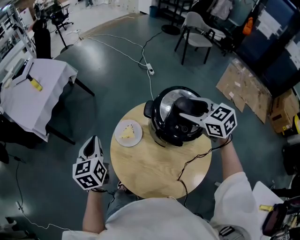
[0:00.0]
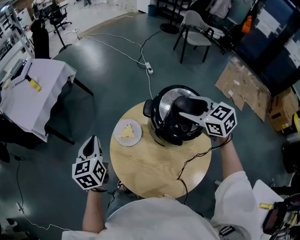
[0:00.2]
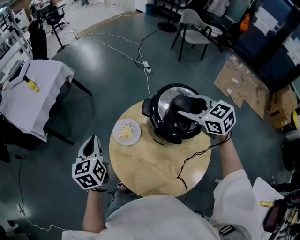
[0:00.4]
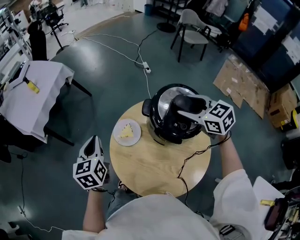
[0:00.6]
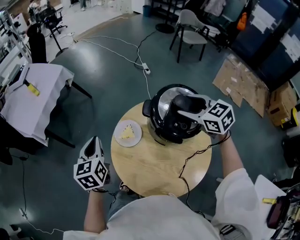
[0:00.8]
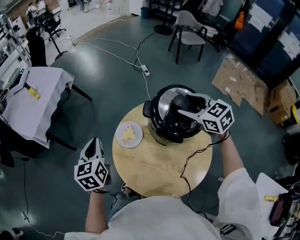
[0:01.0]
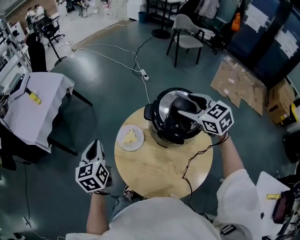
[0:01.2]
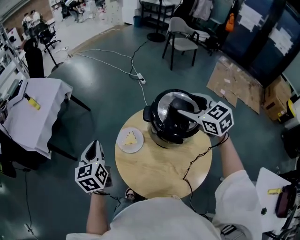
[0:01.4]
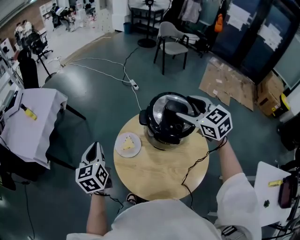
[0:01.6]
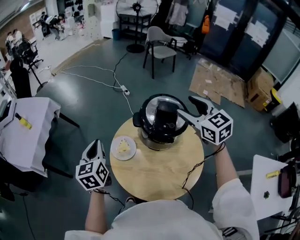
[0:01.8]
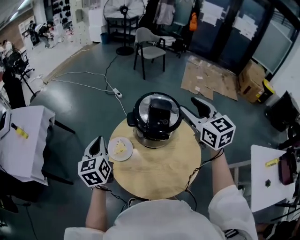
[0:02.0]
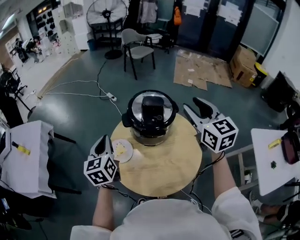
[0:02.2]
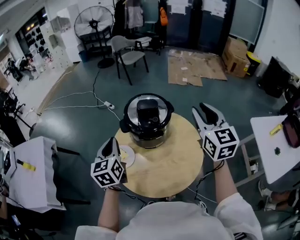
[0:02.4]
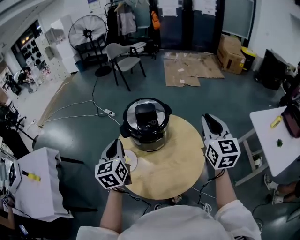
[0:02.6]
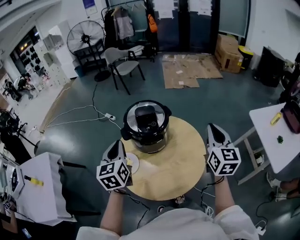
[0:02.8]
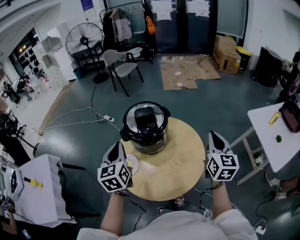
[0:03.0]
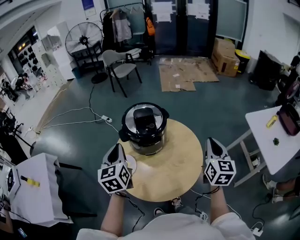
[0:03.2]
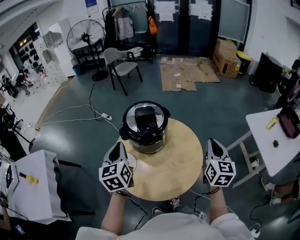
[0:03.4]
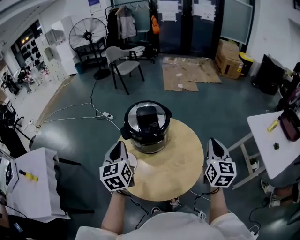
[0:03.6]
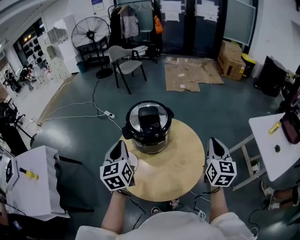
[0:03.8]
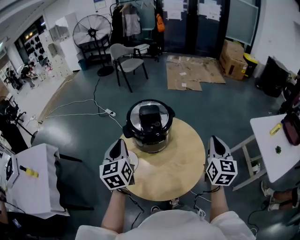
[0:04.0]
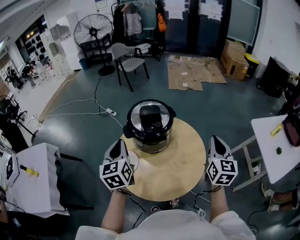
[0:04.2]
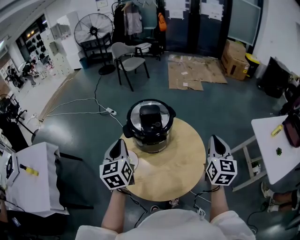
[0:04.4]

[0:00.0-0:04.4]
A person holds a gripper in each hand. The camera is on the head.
0:00.0 to 0:01.4: The grippers move only a little.
0:01.4 to 0:03.0: The left gripper shifts by about 20 cm, and rotates roughly 40 degrees. Meanwhile the right gripper reaches some 10 cm upward, then returns, rotates roughly 80 degrees, and closes.
0:03.0 to 0:04.4: The grippers make only small movements.

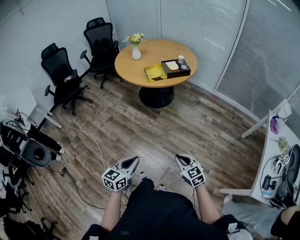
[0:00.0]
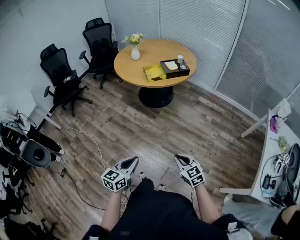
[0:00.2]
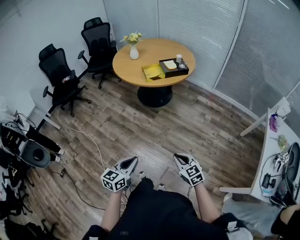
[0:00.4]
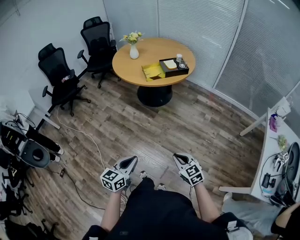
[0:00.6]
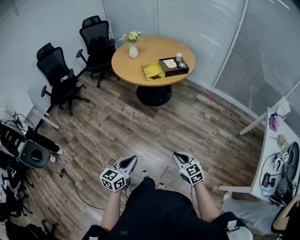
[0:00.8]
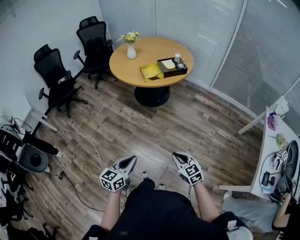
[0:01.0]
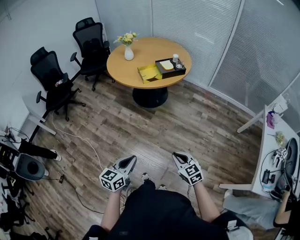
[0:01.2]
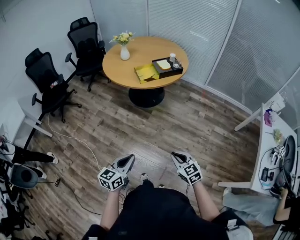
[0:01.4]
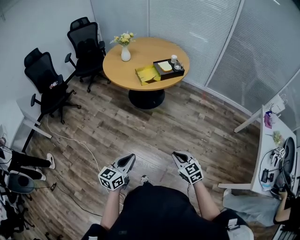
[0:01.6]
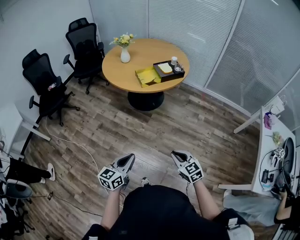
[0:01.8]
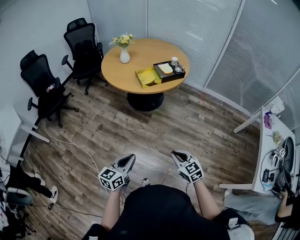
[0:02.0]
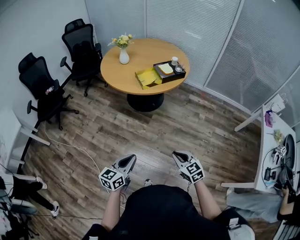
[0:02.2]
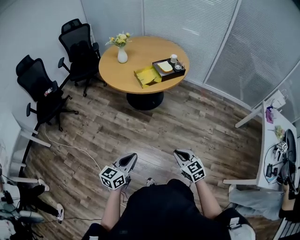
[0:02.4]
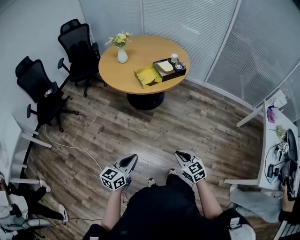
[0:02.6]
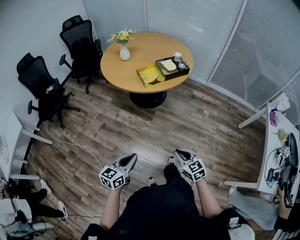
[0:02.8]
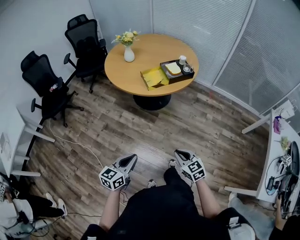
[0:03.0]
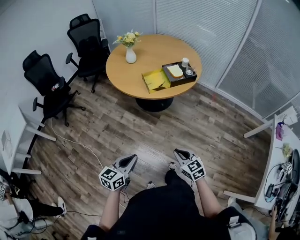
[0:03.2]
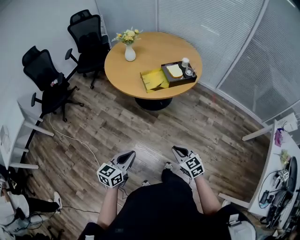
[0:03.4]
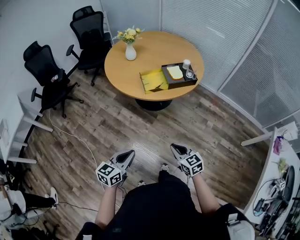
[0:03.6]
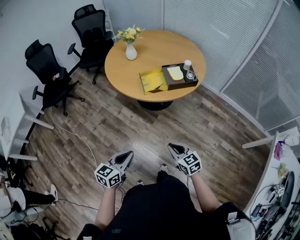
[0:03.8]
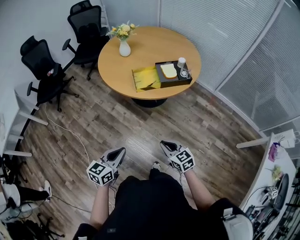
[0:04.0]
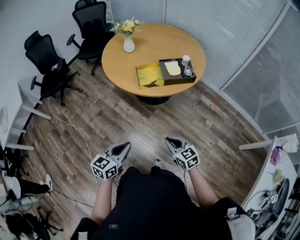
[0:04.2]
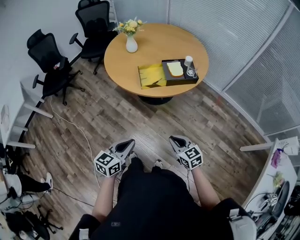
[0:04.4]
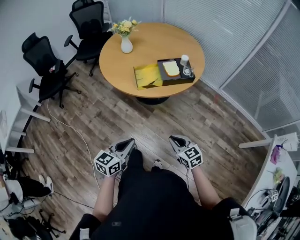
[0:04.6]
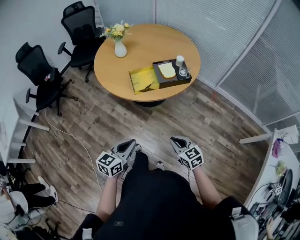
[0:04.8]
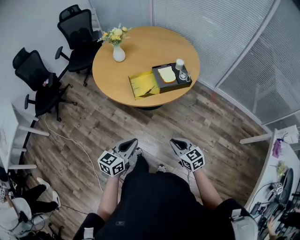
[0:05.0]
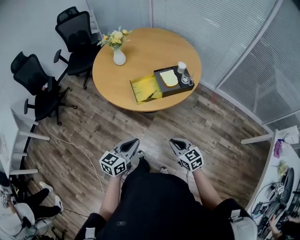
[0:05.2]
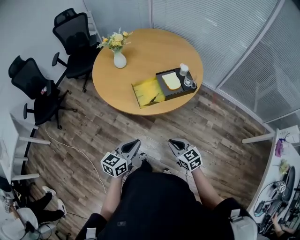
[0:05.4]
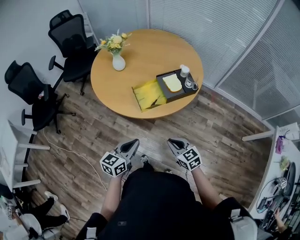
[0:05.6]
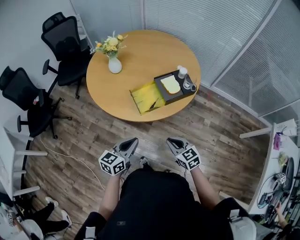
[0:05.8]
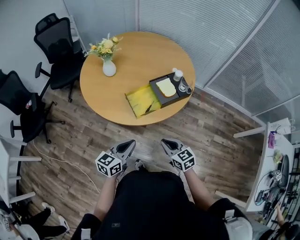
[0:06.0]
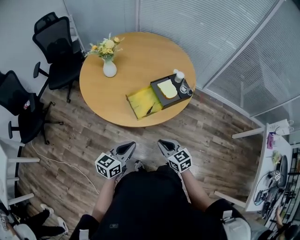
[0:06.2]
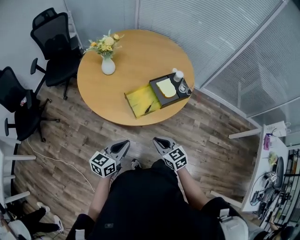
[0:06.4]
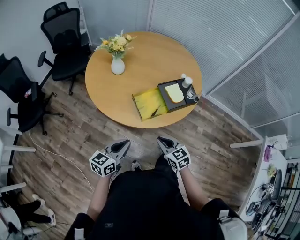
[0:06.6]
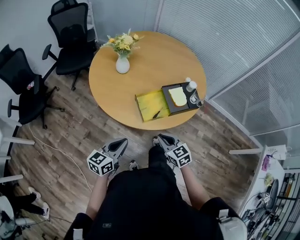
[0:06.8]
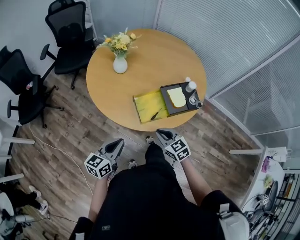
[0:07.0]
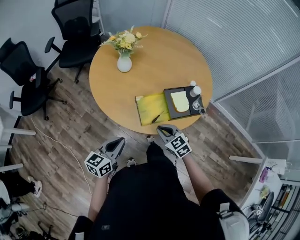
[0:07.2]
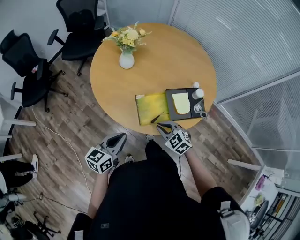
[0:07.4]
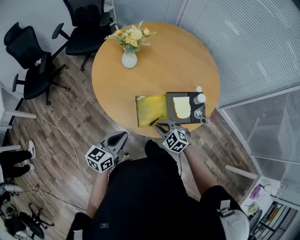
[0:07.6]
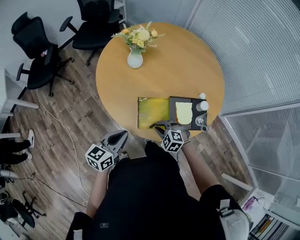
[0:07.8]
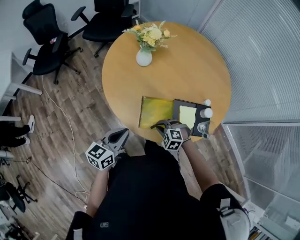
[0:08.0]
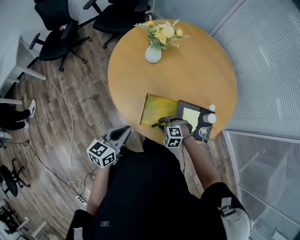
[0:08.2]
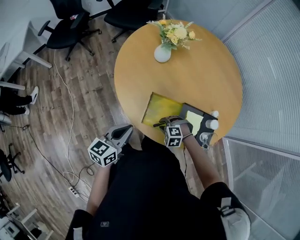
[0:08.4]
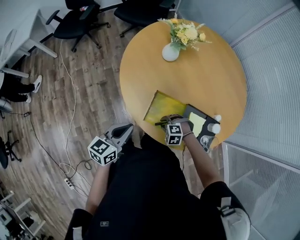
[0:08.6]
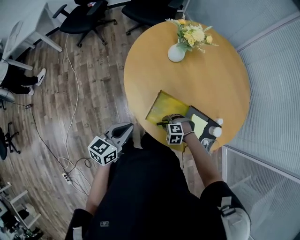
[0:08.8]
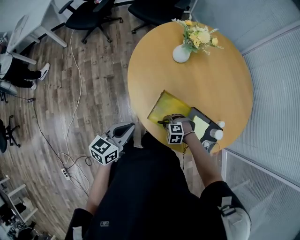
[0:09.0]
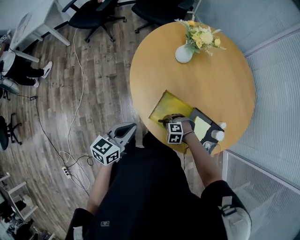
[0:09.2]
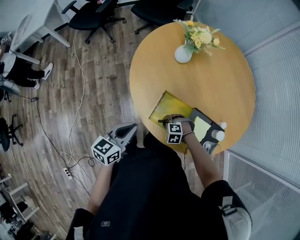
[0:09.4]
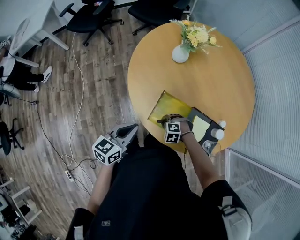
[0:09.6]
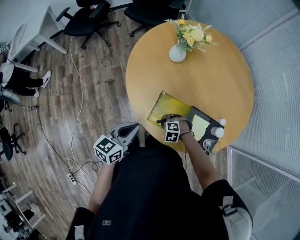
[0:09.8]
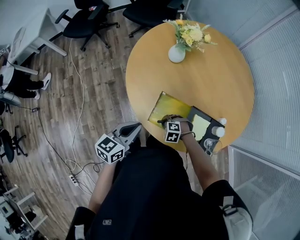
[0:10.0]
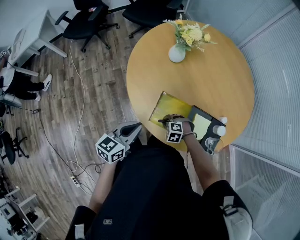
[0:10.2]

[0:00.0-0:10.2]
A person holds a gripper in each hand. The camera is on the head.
0:00.0 to 0:01.4: The right gripper changes place by some 5 cm, while the left gripper is displaced forward by some 5 cm.
0:01.4 to 0:03.0: The right gripper heads forward, covering about 15 cm, while the left gripper heads forward and to the left, covering roughly 15 cm.
0:03.0 to 0:04.4: The left gripper is displaced to the right and forward by about 20 cm. Meanwhile the right gripper goes some 20 cm forward and to the right.
0:04.4 to 0:05.8: The left gripper is displaced forward by roughly 20 cm. The right gripper shifts some 20 cm forward and to the left.
0:05.8 to 0:07.2: The left gripper travels forward and to the left by approximately 10 cm; the right gripper heads forward, covering about 20 cm, and changes its angle by approximately 20 degrees.
0:07.2 to 0:08.8: The left gripper moves roughly 5 cm, and rotates some 30 degrees, while the right gripper goes roughly 20 cm downward, and rotates around the line of its fingers by about 70 degrees, counterclockwise from behind.
0:08.8 to 0:10.2: The grippers make only small movements.

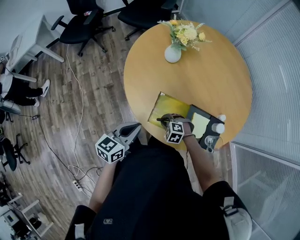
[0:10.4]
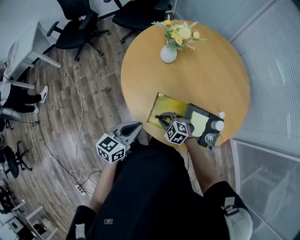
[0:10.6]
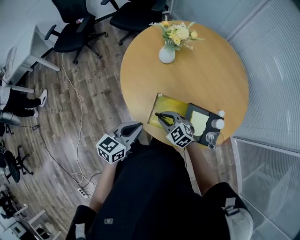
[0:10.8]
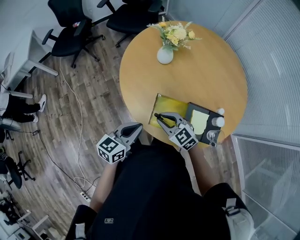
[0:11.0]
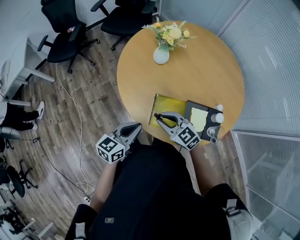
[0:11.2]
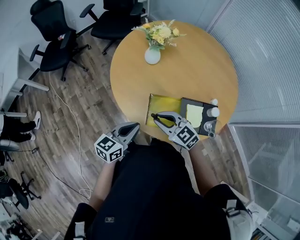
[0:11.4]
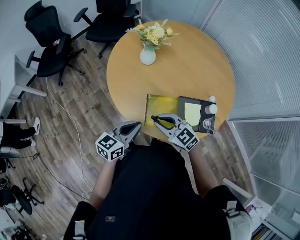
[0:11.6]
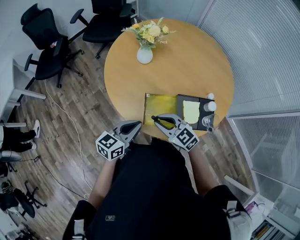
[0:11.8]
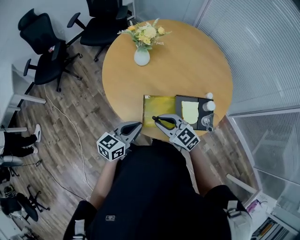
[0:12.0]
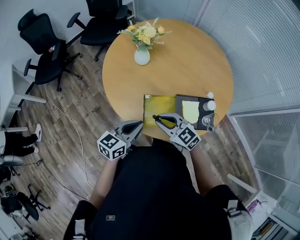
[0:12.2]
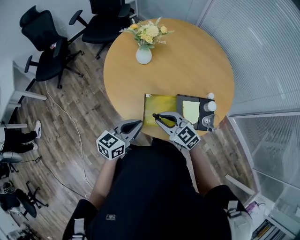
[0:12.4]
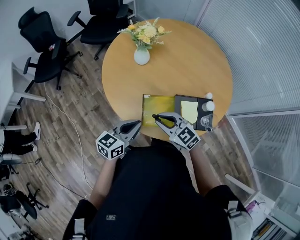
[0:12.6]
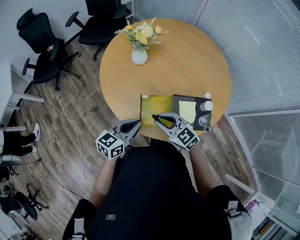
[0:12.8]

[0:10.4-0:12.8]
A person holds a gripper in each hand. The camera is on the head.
0:10.4 to 0:11.6: The right gripper moves upward, about 20 cm, and points its fingers roughly 40 degrees further upward.
0:11.6 to 0:12.8: There are only small adjustments of the grippers.

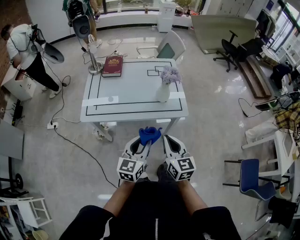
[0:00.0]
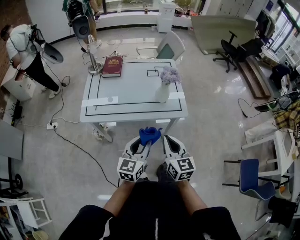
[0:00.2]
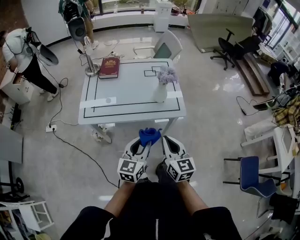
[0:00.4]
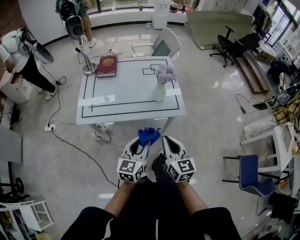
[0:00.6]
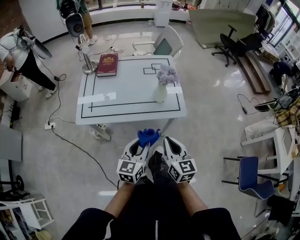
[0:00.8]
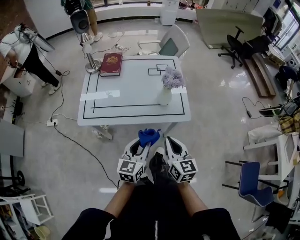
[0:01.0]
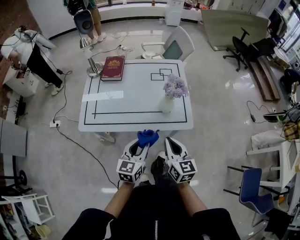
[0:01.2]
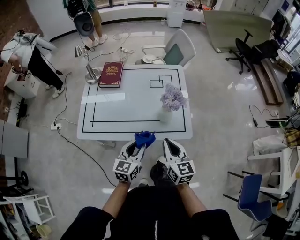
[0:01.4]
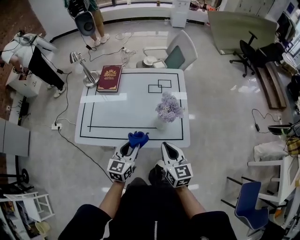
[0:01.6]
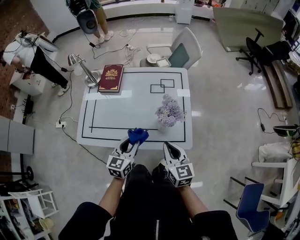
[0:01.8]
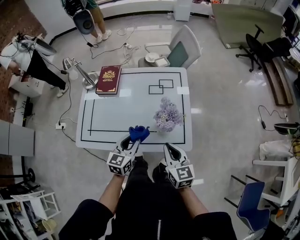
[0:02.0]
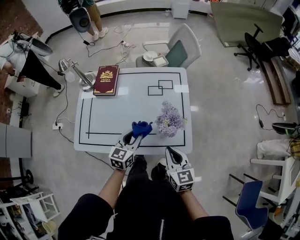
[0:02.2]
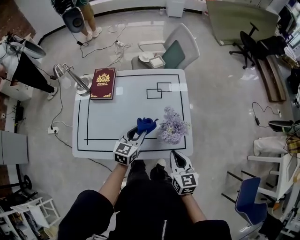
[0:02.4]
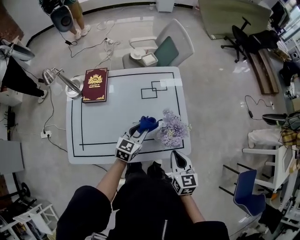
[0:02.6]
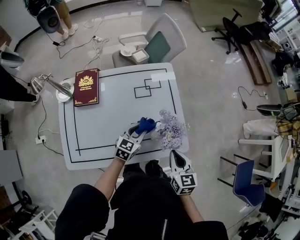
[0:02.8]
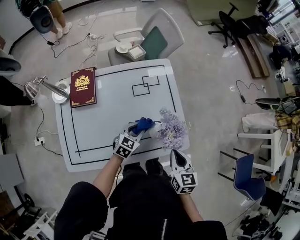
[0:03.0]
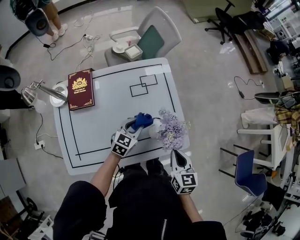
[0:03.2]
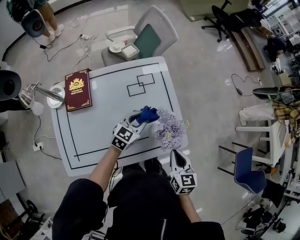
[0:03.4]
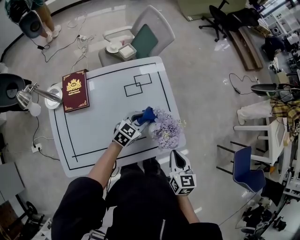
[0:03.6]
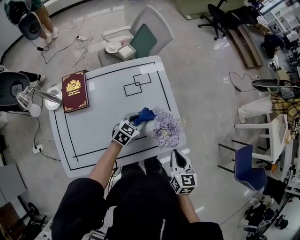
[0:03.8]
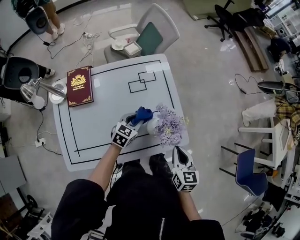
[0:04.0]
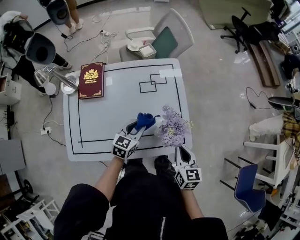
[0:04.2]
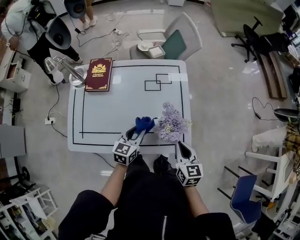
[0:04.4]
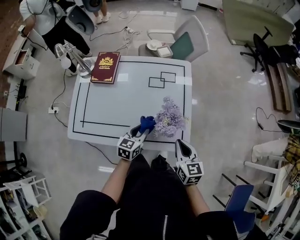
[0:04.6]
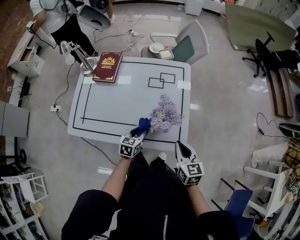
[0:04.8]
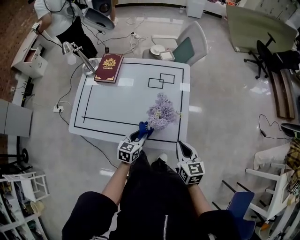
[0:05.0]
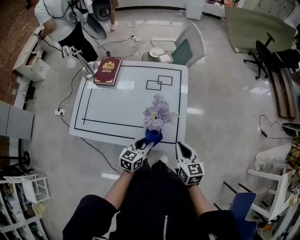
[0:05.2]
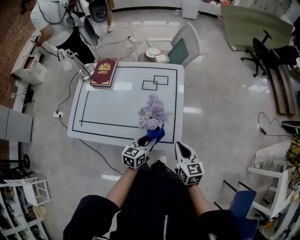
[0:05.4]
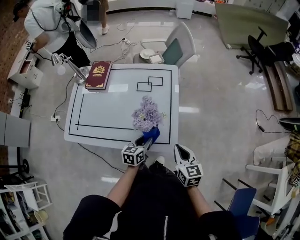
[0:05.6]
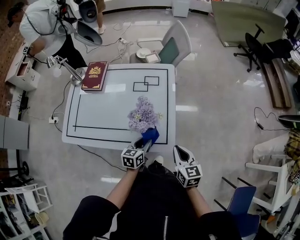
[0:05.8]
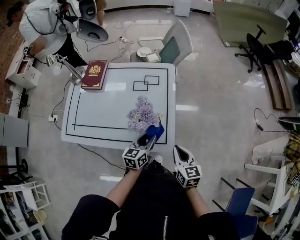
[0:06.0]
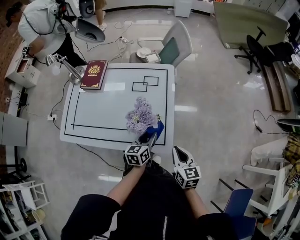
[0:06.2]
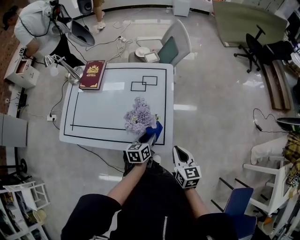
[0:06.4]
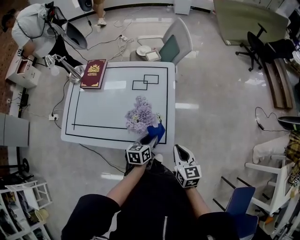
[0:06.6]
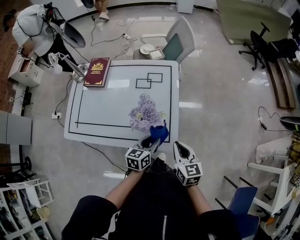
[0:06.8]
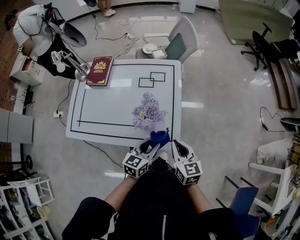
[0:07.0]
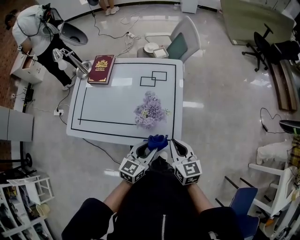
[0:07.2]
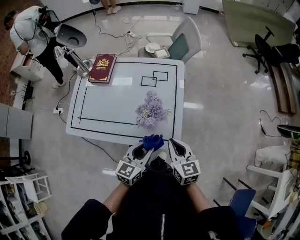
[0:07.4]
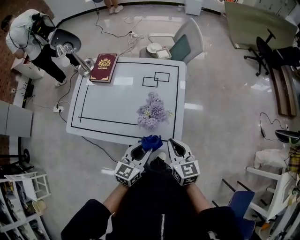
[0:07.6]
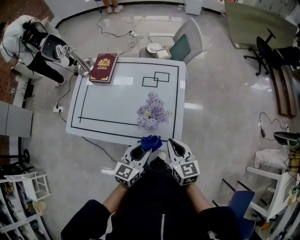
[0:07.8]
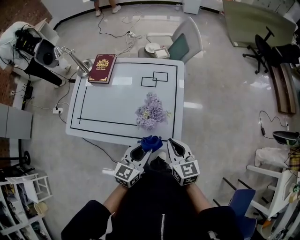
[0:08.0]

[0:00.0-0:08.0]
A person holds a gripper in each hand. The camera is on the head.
0:00.0 to 0:01.6: The two grippers go some 20 cm forward.
0:01.6 to 0:03.2: The right gripper ends up approximately 10 cm from where it was, and swivels roughly 30 degrees. The left gripper moves approximately 25 cm, and changes its angle by about 40 degrees.
0:03.2 to 0:04.8: The left gripper swings up and down, roughly 10 cm each way, with 3 reversals, and changes its angle by some 40 degrees; the right gripper shifts by approximately 5 cm, and swivels about 30 degrees.
0:04.8 to 0:06.4: The left gripper moves to the right, approximately 15 cm, and swivels about 20 degrees. Meanwhile the right gripper shifts some 10 cm to the right.
0:06.4 to 0:08.0: The right gripper is displaced to the left by some 10 cm; the left gripper is displaced upward, backward and to the left by about 15 cm, and changes its angle by about 30 degrees.
